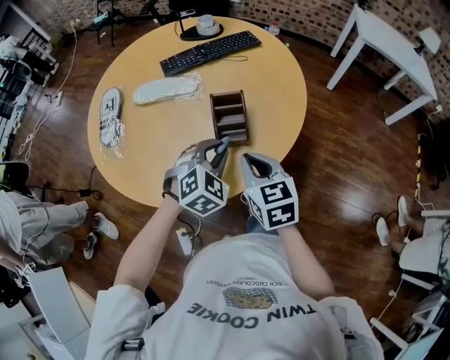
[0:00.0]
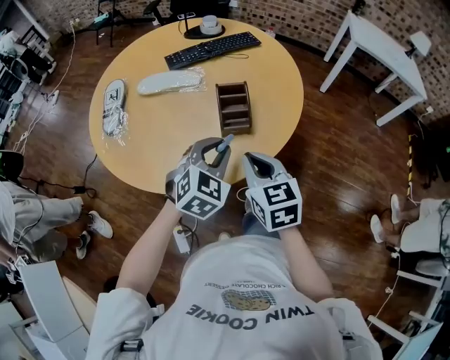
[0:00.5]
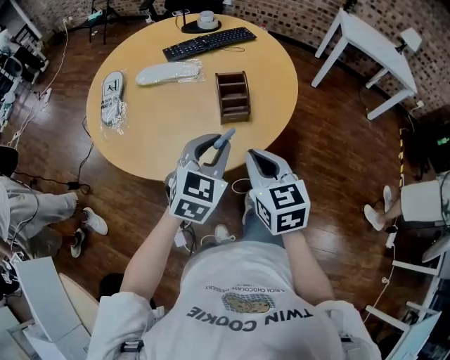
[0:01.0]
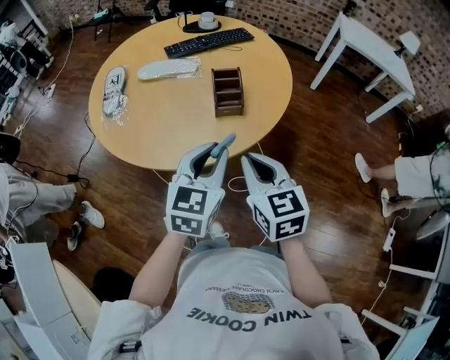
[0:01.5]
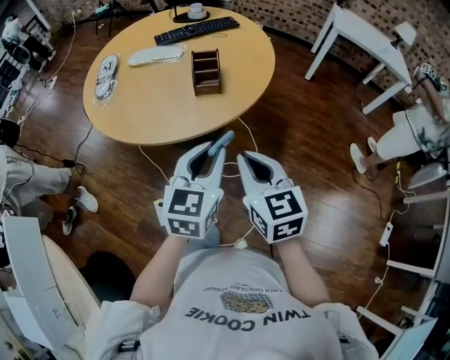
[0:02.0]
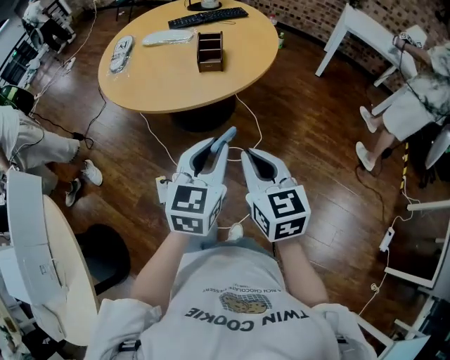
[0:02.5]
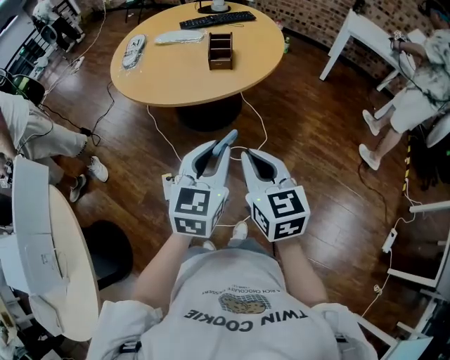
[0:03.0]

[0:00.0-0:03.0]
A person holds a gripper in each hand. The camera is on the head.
0:00.0 to 0:01.5: The two grippers go about 20 cm backward and upward. The left gripper swivels roughly 50 degrees.
0:01.5 to 0:03.0: The grippers both shift backward by some 25 cm.

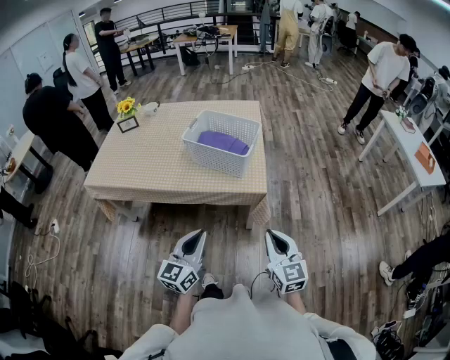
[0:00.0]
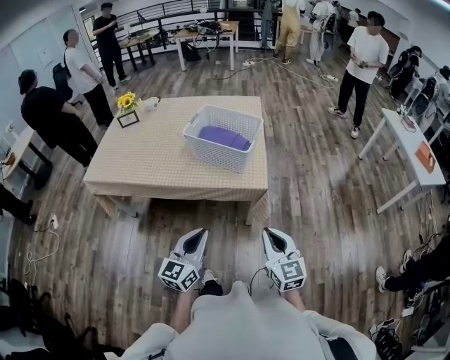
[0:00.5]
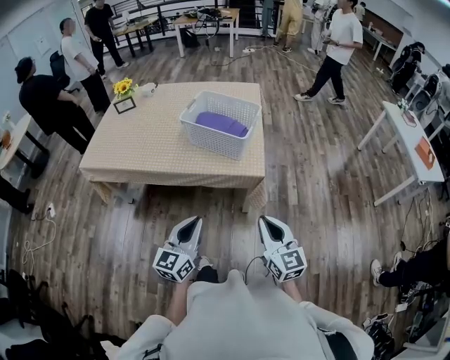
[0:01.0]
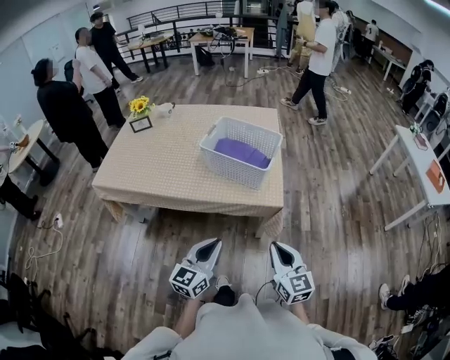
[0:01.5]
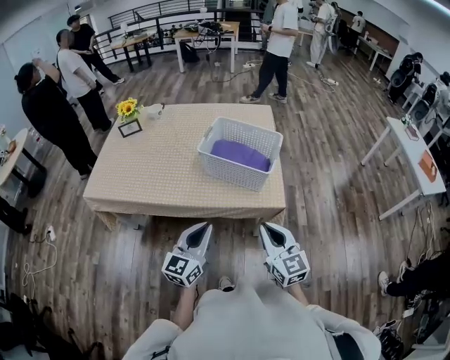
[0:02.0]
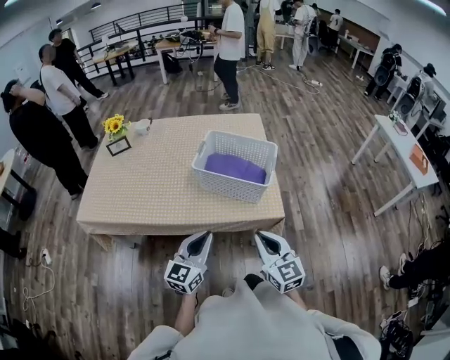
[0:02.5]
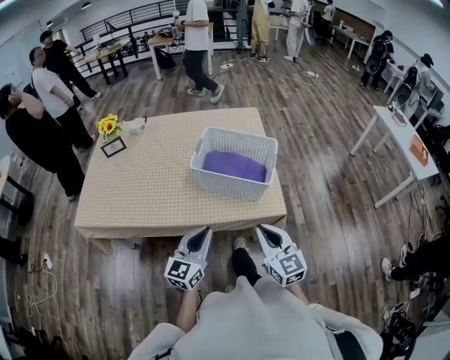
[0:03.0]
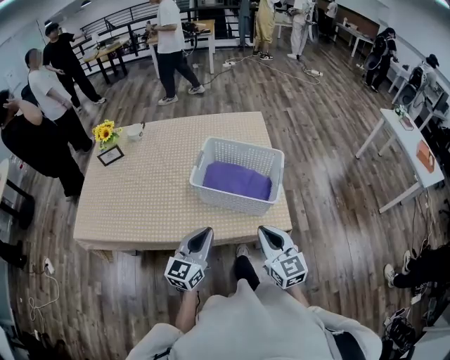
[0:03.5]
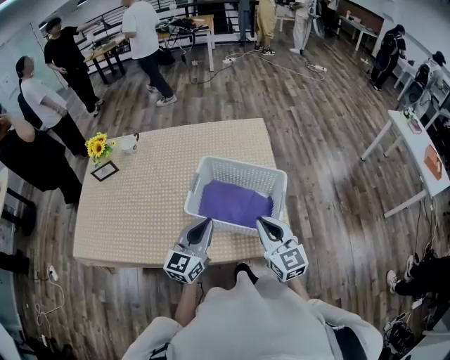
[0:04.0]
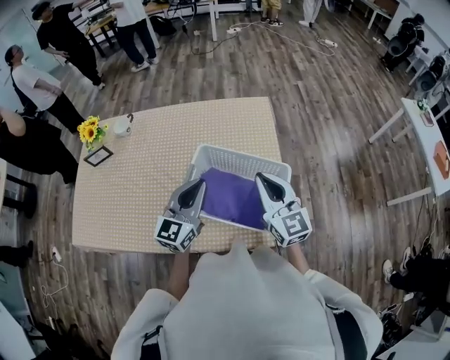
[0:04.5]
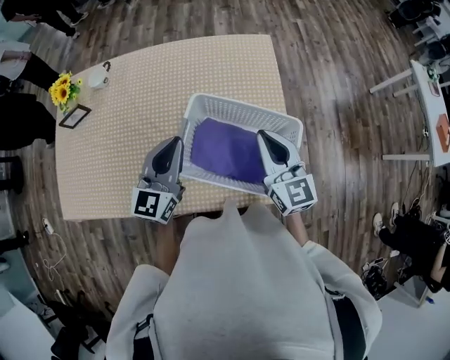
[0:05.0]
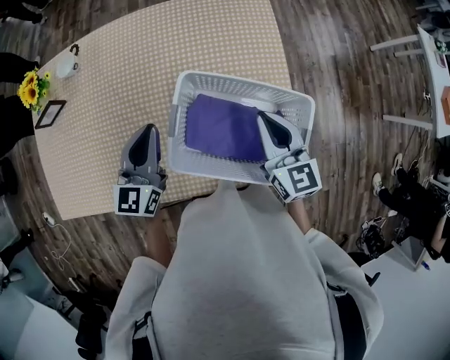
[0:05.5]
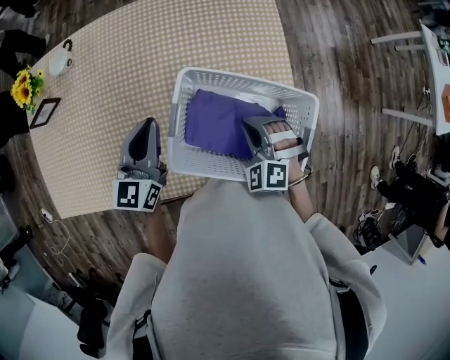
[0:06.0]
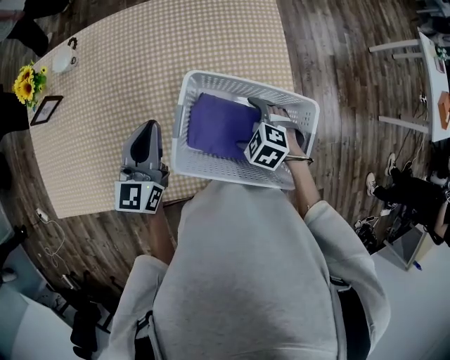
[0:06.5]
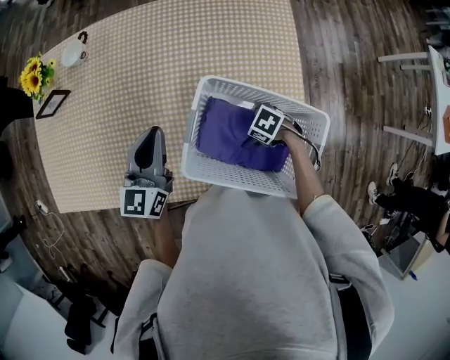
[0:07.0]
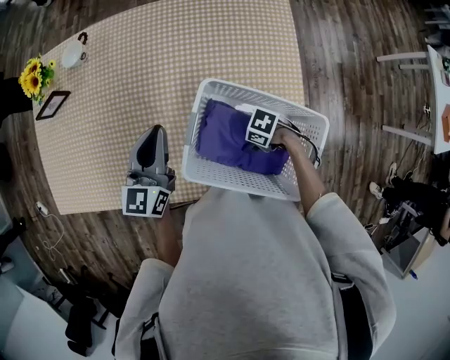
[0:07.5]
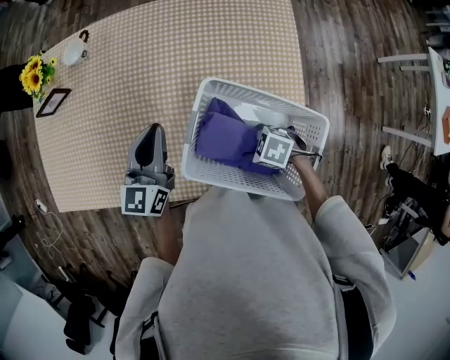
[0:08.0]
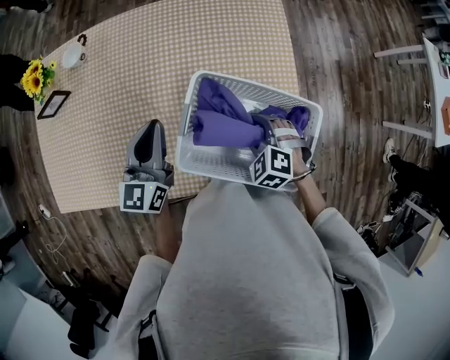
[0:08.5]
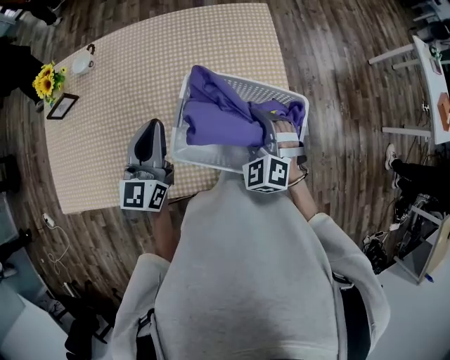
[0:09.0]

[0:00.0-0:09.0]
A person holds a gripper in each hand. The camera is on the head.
0:00.0 to 0:02.0: The left gripper is displaced forward and to the left by some 15 cm. Meanwhile the right gripper is displaced to the left and forward by about 20 cm.
0:02.0 to 0:04.5: The pair of grippers is taken forward, roughly 40 cm.
0:04.5 to 0:07.0: The right gripper shifts roughly 35 cm downward, angles its fingers downward, by some 70 degrees, and opens, while the left gripper shifts by roughly 20 cm.
0:07.0 to 0:09.0: The right gripper is displaced upward by roughly 20 cm, turns by approximately 70 degrees, and closes up; the left gripper is displaced upward by some 5 cm.

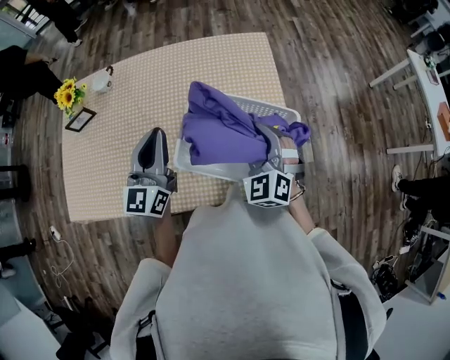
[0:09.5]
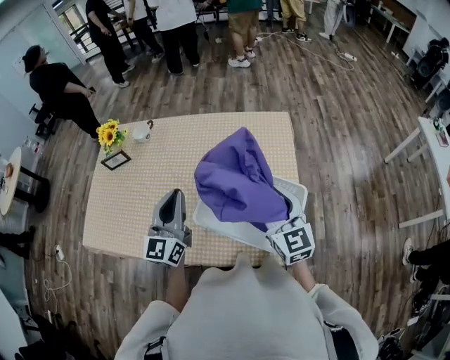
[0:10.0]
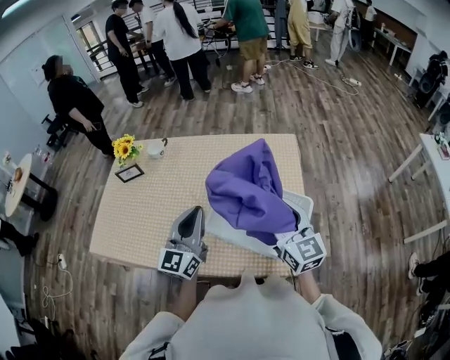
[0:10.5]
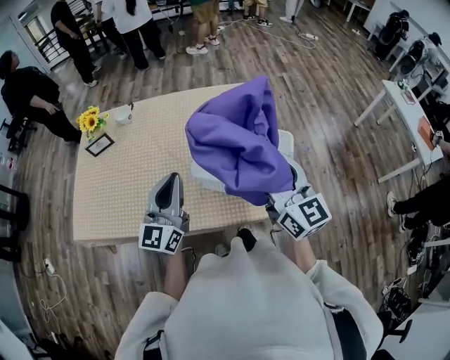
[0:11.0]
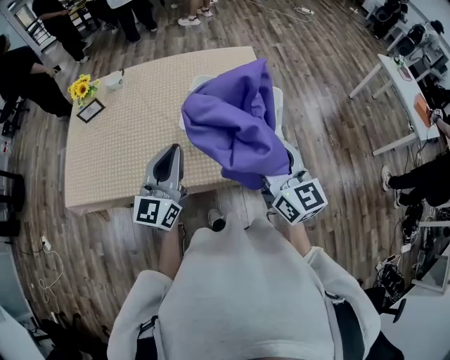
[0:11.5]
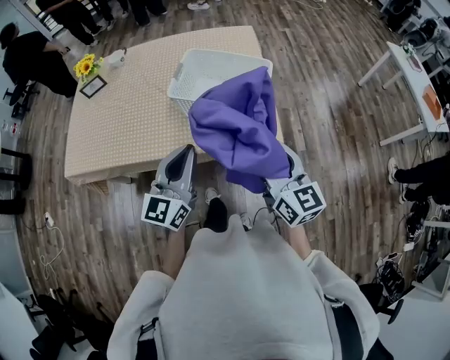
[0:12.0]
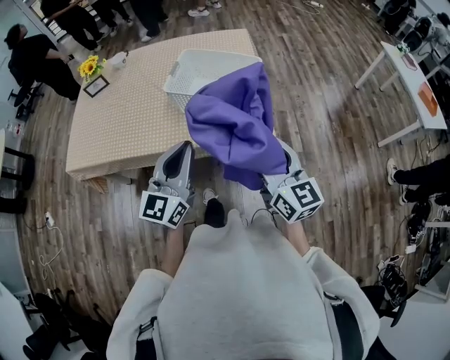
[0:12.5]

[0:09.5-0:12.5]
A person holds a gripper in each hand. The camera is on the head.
0:09.5 to 0:11.0: The left gripper moves backward, some 15 cm. The right gripper is displaced upward and backward by about 20 cm, and rolls clockwise, seen from behind, by roughly 50 degrees.
0:11.0 to 0:12.5: The grippers both shift backward and to the right by about 25 cm.

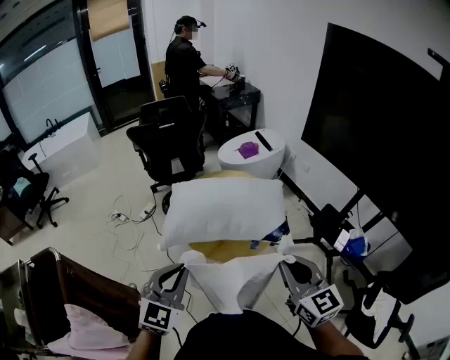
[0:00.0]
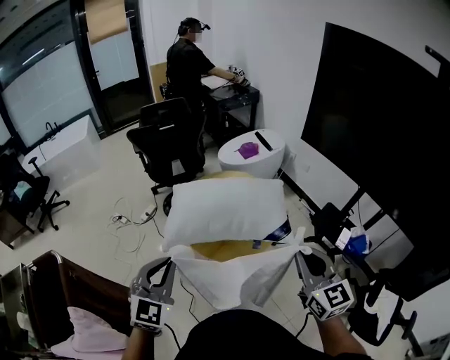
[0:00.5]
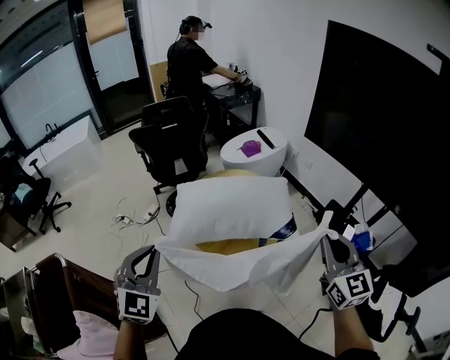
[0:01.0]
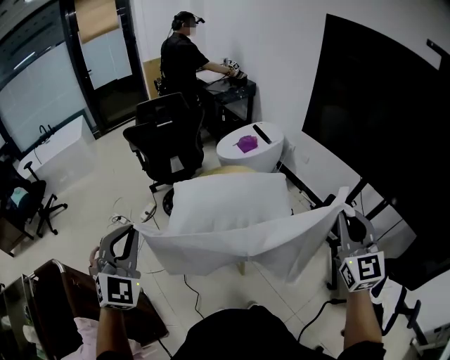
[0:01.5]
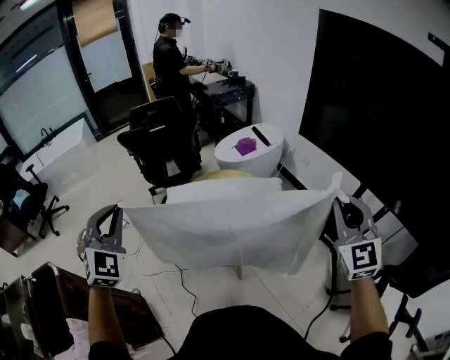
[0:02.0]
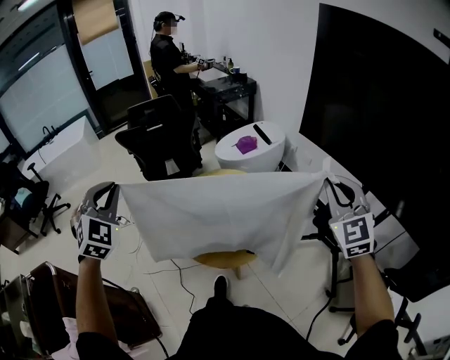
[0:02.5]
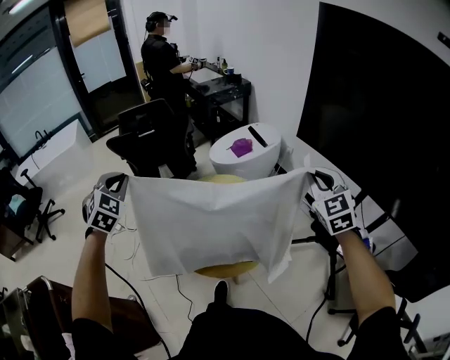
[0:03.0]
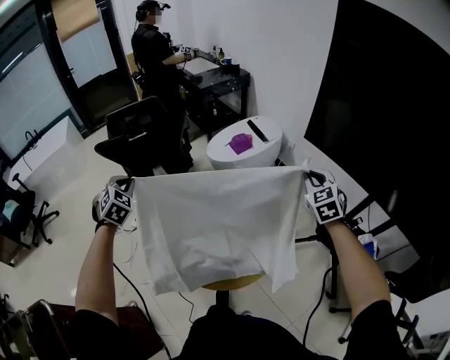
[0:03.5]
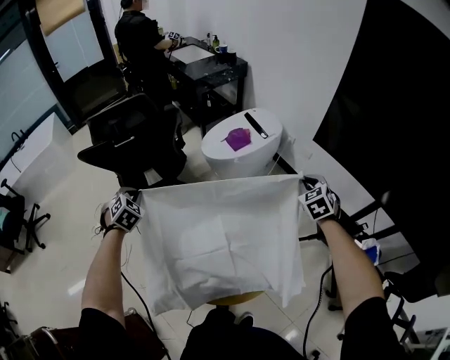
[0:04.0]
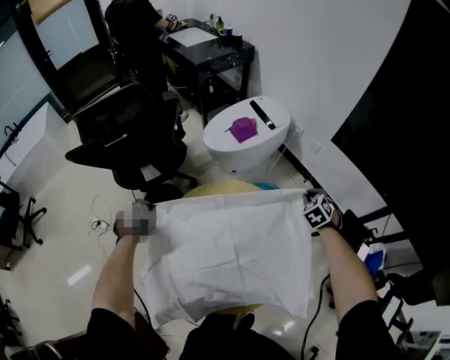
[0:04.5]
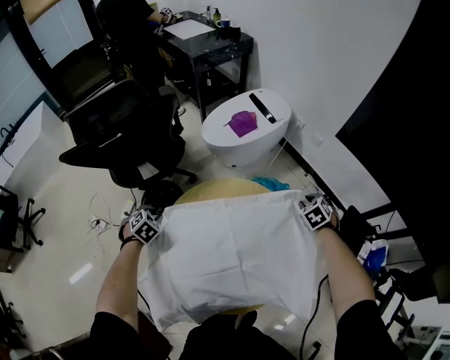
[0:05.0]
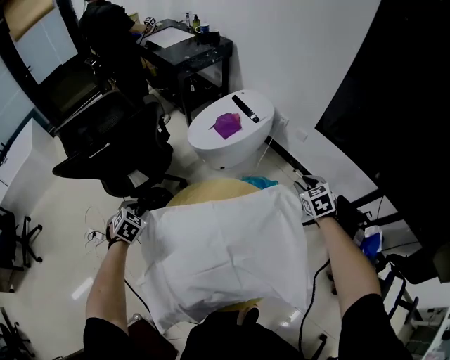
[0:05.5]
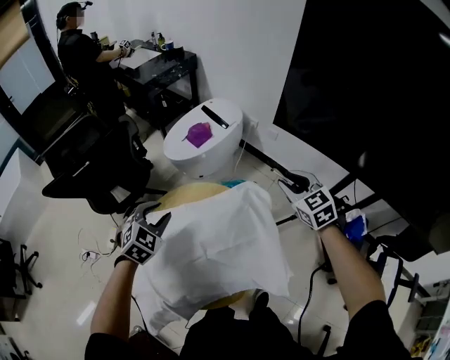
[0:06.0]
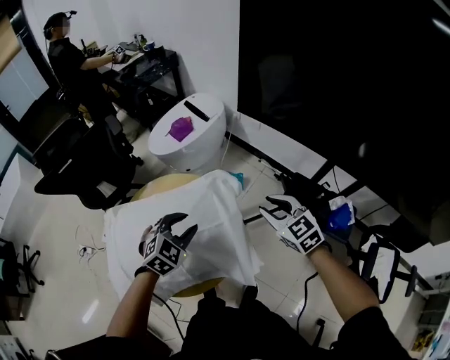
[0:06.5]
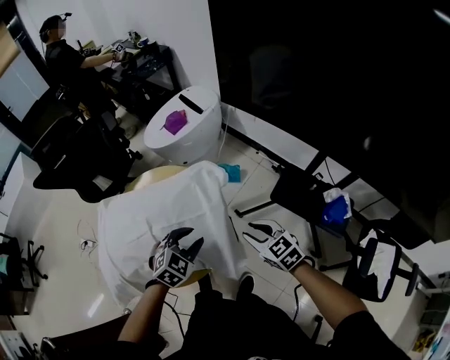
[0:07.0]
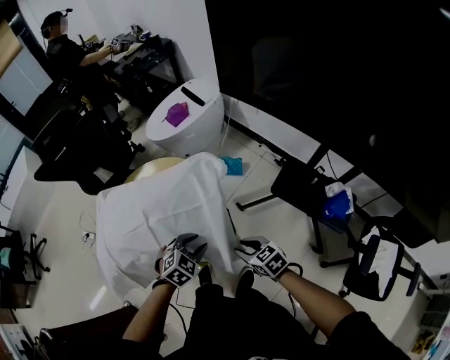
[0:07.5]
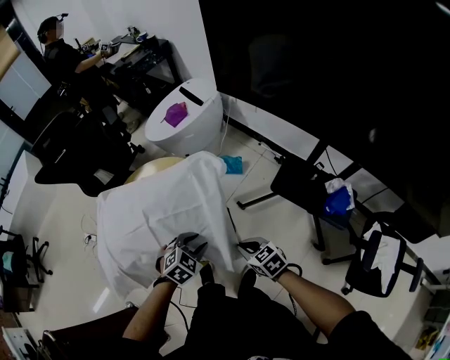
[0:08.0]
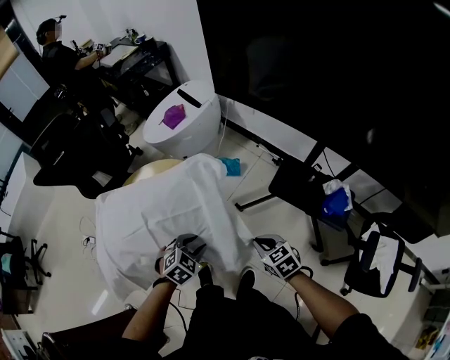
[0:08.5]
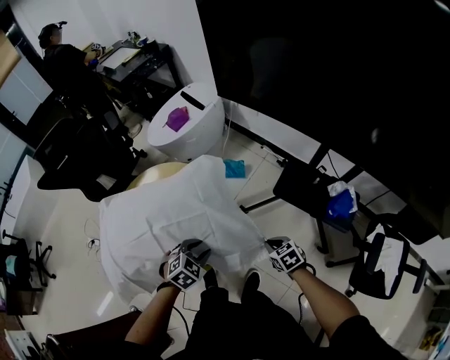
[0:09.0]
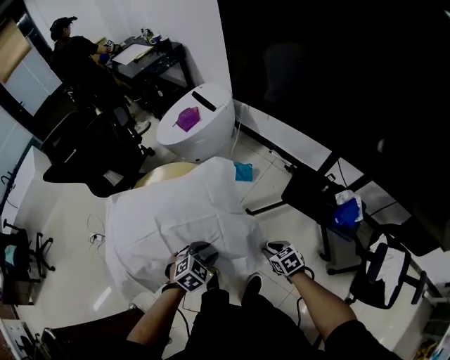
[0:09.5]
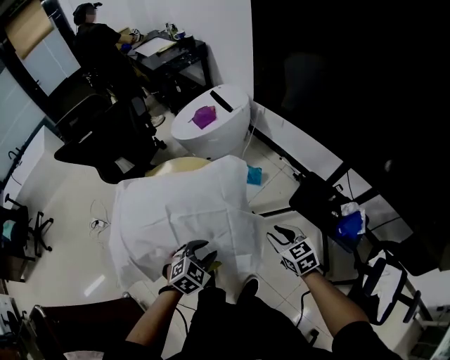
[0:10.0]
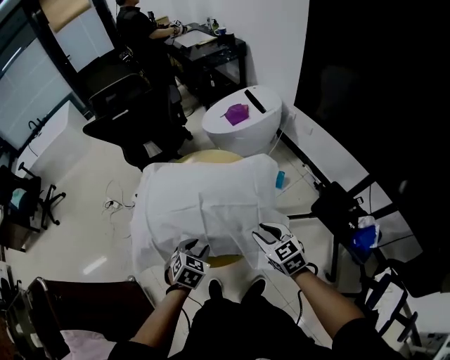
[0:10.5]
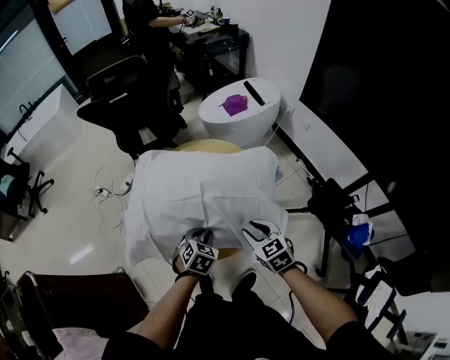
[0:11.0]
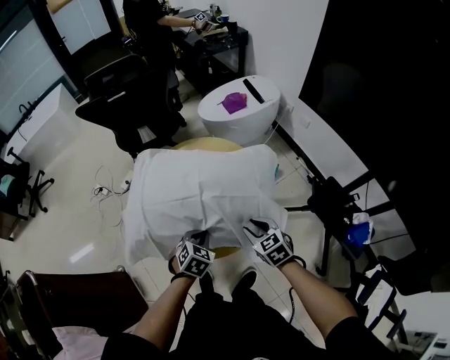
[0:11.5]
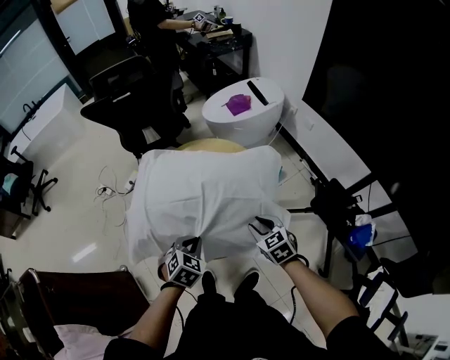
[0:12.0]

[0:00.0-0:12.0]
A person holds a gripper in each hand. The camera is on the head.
0:00.0 to 0:02.0: The left gripper shifts roughly 25 cm forward, to the left and upward, and swivels about 40 degrees. Meanwhile the right gripper heads to the right, forward and upward, covering approximately 20 cm, and changes its angle by roughly 40 degrees.
0:02.0 to 0:04.0: The pair of grippers is taken forward, some 40 cm. Both grippers move downward, approximately 30 cm. The left gripper points its fingers approximately 40 degrees further downward. The right gripper angles its fingers downward, by roughly 40 degrees.
0:04.0 to 0:06.0: The right gripper heads backward, covering about 5 cm, goes downward and returns, about 20 cm each way, and opens its fingers. Meanwhile the left gripper is displaced to the right by approximately 25 cm, changes its angle by some 30 degrees, and opens.
0:06.0 to 0:08.0: The left gripper moves to the right, backward and downward, approximately 40 cm, while the right gripper goes approximately 35 cm backward and downward, changes its angle by roughly 30 degrees, and closes.
0:08.0 to 0:10.0: The right gripper shifts approximately 10 cm forward, to the right and upward, and opens up.
0:10.0 to 0:12.0: The two grippers go some 15 cm to the left. The left gripper turns by about 30 degrees, and closes.
